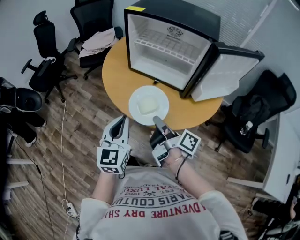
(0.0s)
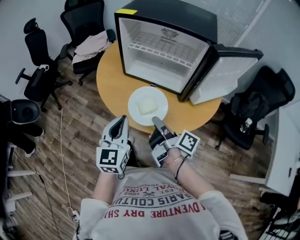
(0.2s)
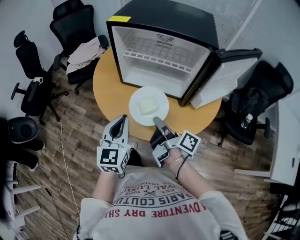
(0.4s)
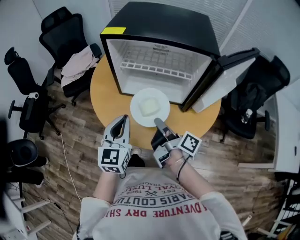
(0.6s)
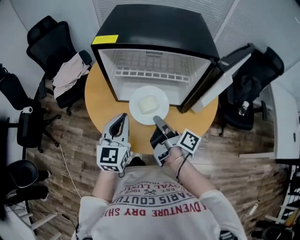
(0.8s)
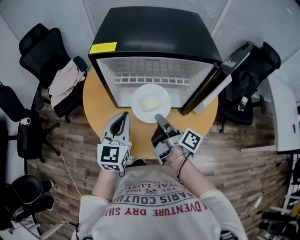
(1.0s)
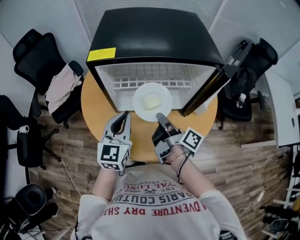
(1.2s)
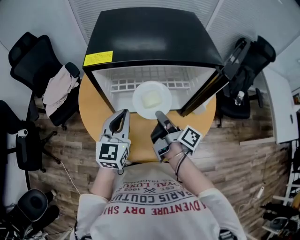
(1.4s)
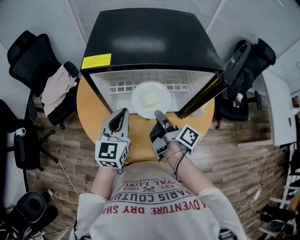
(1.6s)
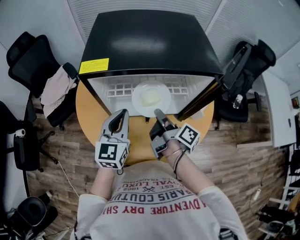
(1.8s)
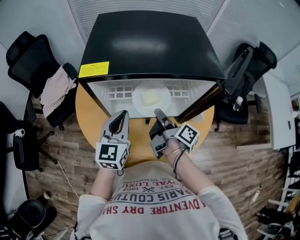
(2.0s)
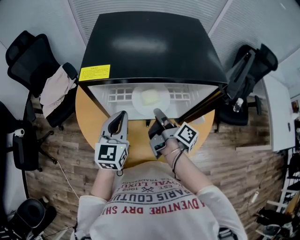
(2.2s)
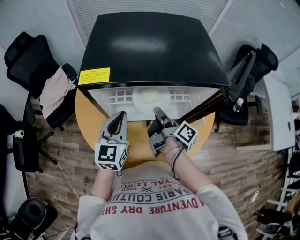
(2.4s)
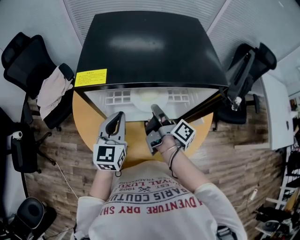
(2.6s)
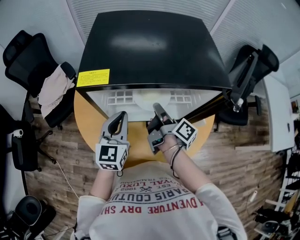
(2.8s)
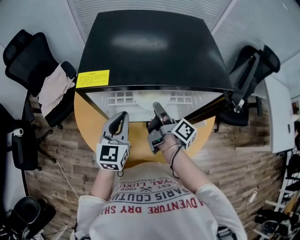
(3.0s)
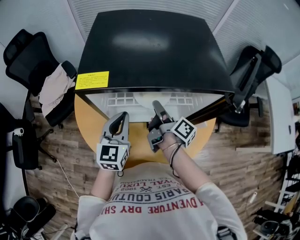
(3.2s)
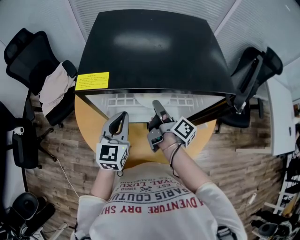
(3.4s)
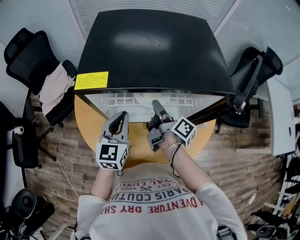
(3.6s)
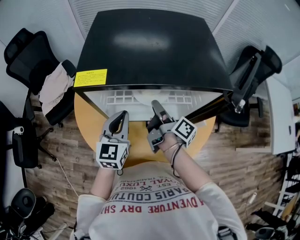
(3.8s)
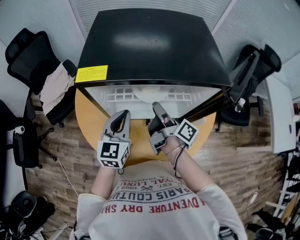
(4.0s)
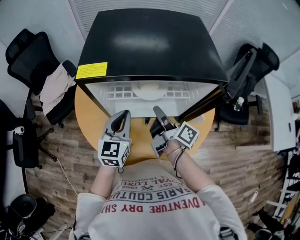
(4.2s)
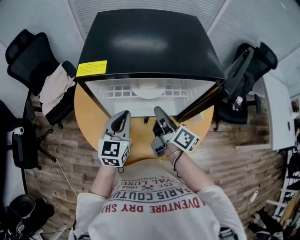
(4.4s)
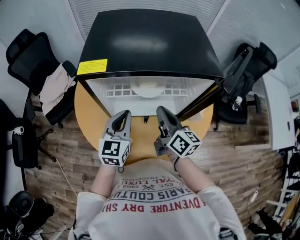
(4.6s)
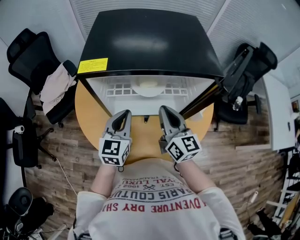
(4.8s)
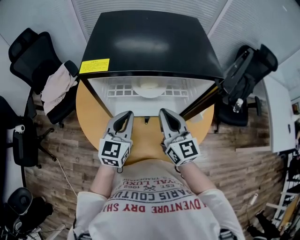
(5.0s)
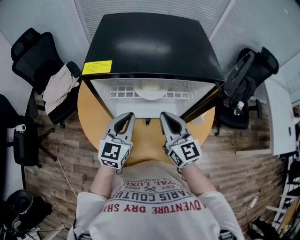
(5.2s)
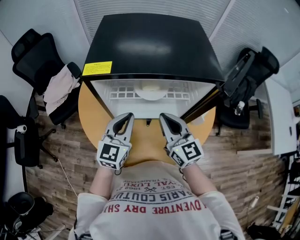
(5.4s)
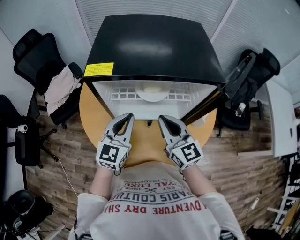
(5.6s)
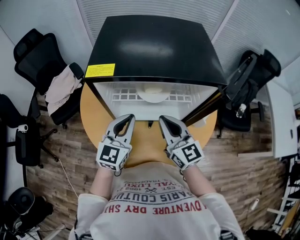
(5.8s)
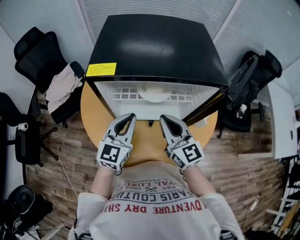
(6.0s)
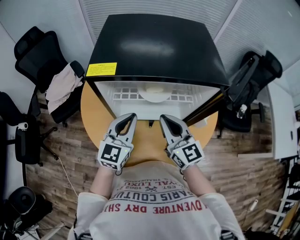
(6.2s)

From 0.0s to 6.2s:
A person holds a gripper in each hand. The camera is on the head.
From 0.0s to 1.6s: The left gripper ends up about 30 cm from where it was, and turns by some 30 degrees.
From 1.6s to 3.2s: The left gripper changes place by about 5 cm.

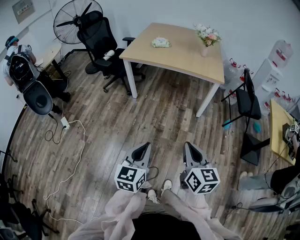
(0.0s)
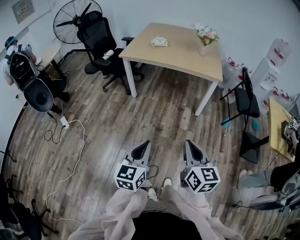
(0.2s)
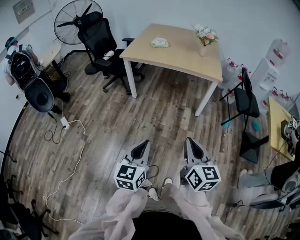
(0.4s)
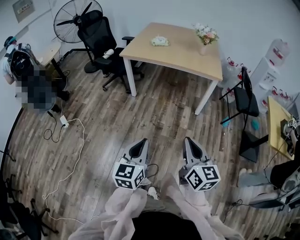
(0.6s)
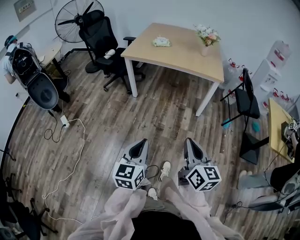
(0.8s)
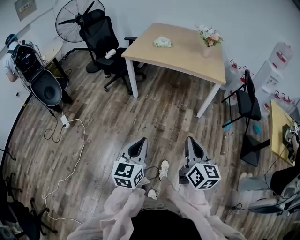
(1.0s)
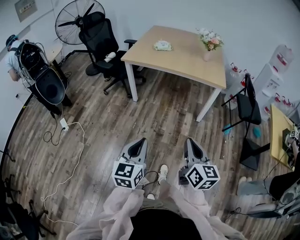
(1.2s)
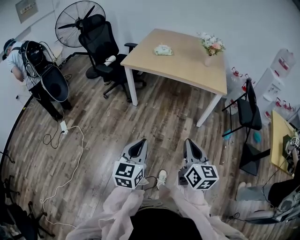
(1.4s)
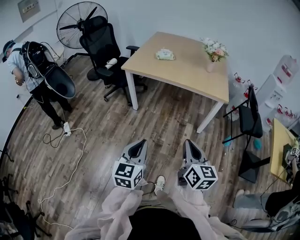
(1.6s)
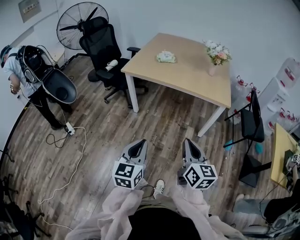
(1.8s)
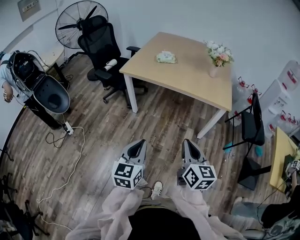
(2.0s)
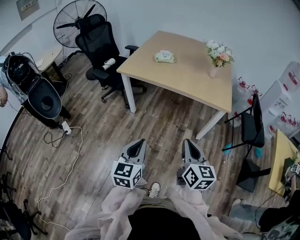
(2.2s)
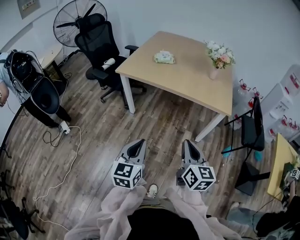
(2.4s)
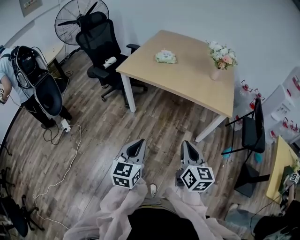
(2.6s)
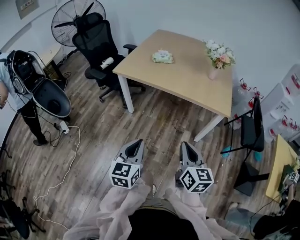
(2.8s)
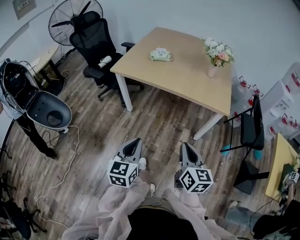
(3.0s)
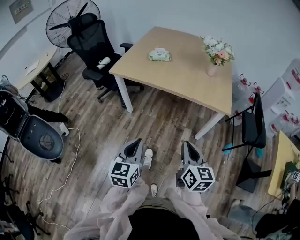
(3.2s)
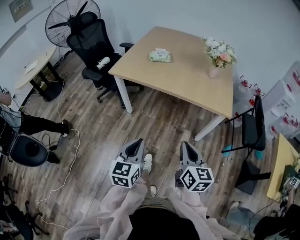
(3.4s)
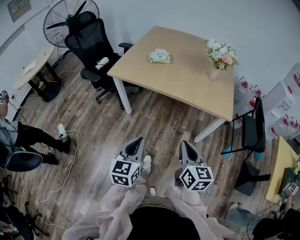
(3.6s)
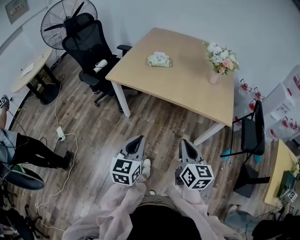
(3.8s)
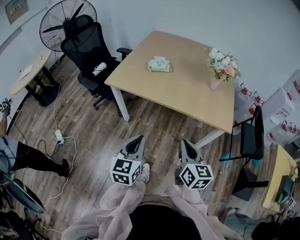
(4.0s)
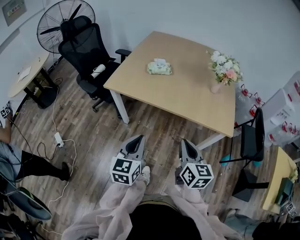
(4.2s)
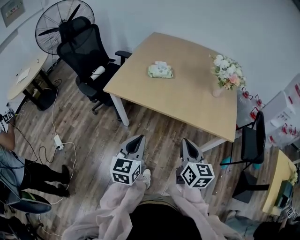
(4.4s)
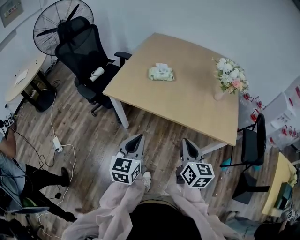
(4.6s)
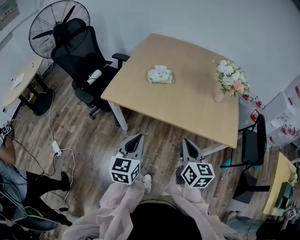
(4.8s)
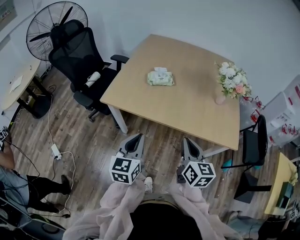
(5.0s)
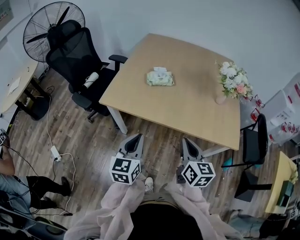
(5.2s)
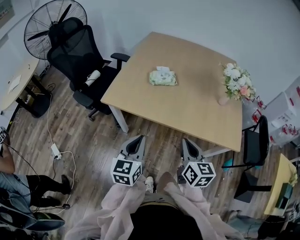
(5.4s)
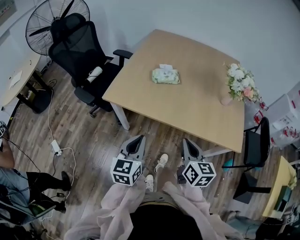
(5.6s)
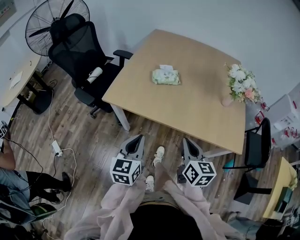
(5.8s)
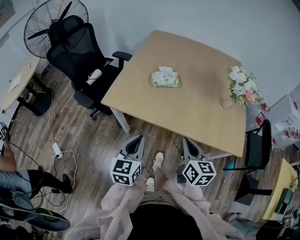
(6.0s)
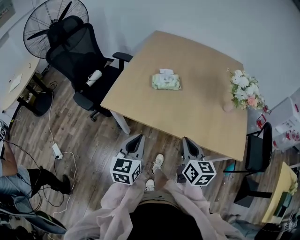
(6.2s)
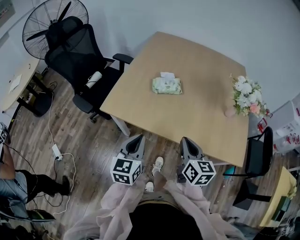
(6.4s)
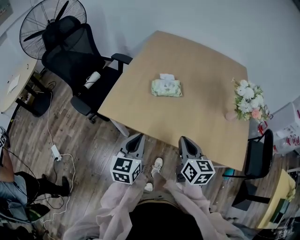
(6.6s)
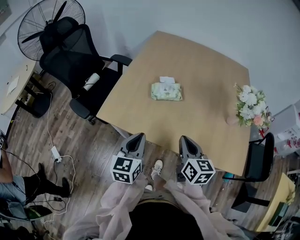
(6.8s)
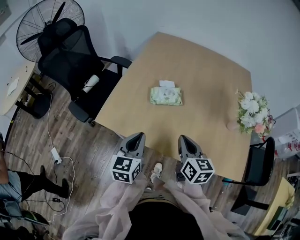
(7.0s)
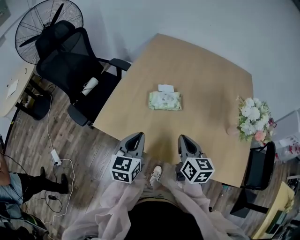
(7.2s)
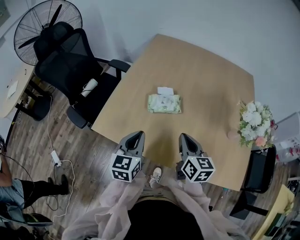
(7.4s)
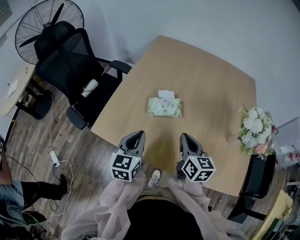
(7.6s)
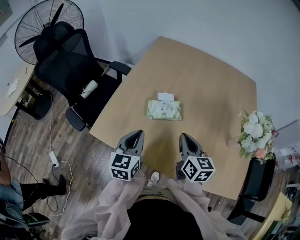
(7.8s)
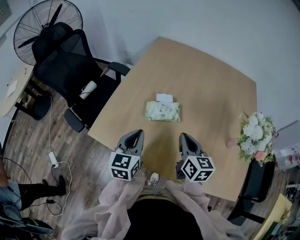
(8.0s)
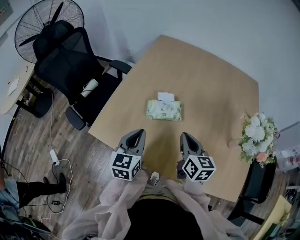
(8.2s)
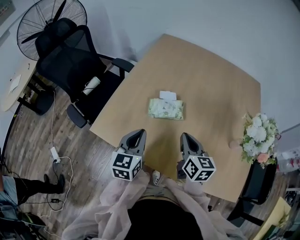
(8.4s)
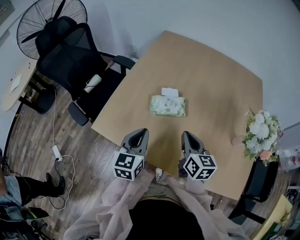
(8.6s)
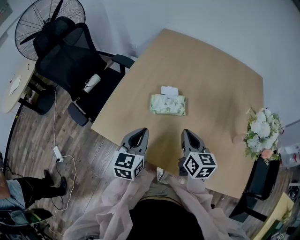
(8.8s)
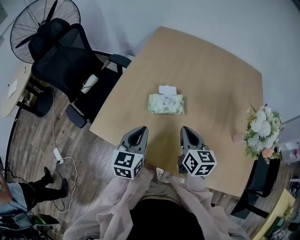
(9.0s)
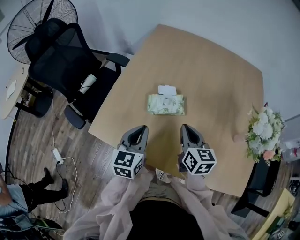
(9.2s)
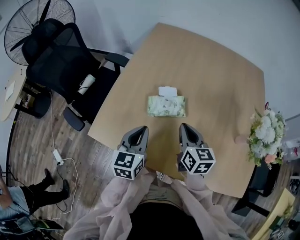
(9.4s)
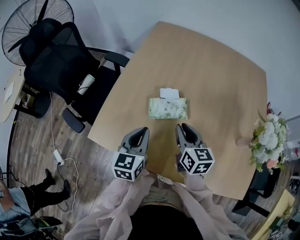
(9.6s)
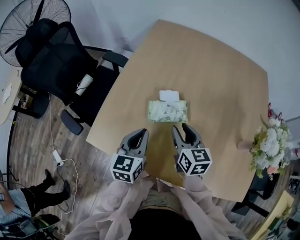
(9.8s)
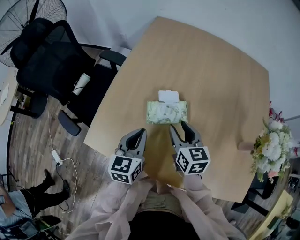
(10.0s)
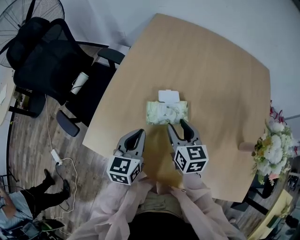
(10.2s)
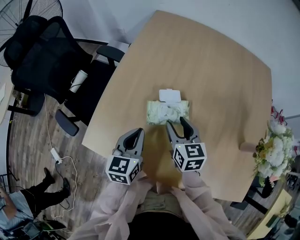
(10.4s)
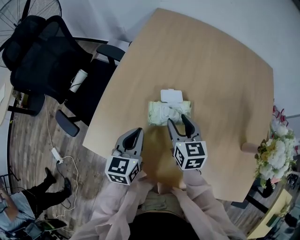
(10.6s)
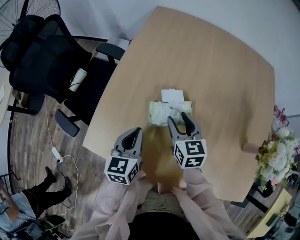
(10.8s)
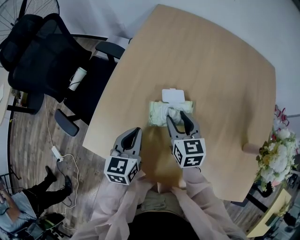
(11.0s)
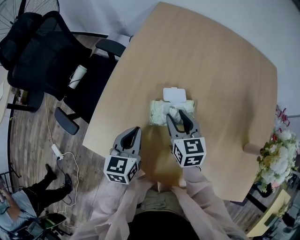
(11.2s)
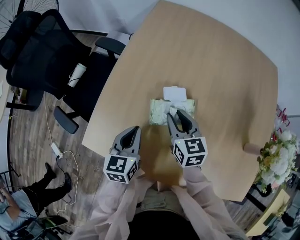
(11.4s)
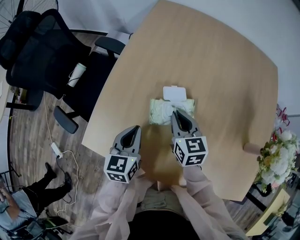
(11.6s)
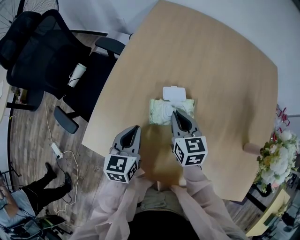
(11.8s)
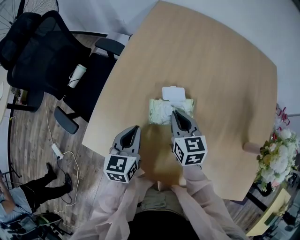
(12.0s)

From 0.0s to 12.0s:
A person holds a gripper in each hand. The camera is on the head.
From 0.0s to 1.6s: The grippers both shift forward by about 15 cm.
From 1.6s to 3.0s: The right gripper moves forward and to the right, some 15 cm. The left gripper travels forward by some 15 cm.
From 3.0s to 4.4s: Both grippers travel together forward, approximately 20 cm.
From 4.4s to 6.0s: The right gripper goes about 15 cm forward, while the left gripper goes about 15 cm forward and to the left.
From 6.0s to 7.6s: The grippers both shift forward by roughly 25 cm.
From 7.6s to 9.0s: The grippers stay close to where they were, moving slightly.
From 9.0s to 10.4s: The right gripper travels forward, downward and to the left by some 15 cm, and opens, while the left gripper shifts roughly 10 cm forward and downward.
From 10.4s to 12.0s: The right gripper closes.

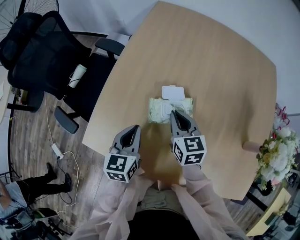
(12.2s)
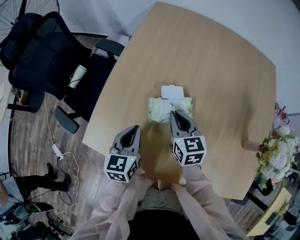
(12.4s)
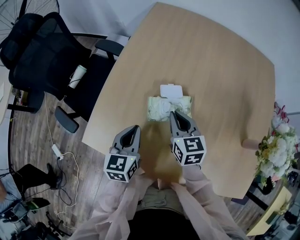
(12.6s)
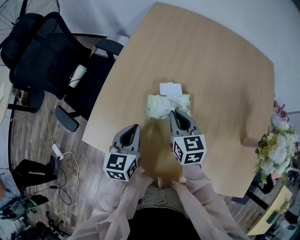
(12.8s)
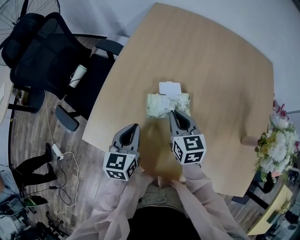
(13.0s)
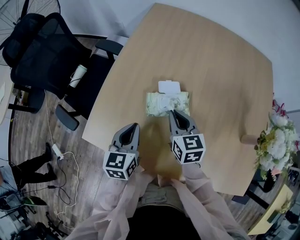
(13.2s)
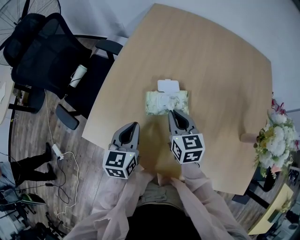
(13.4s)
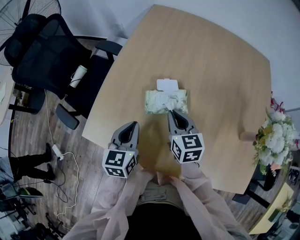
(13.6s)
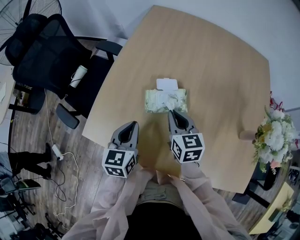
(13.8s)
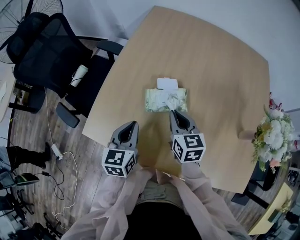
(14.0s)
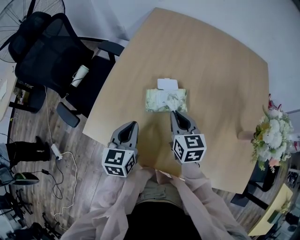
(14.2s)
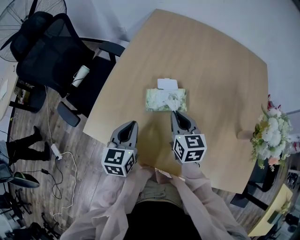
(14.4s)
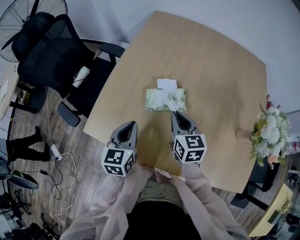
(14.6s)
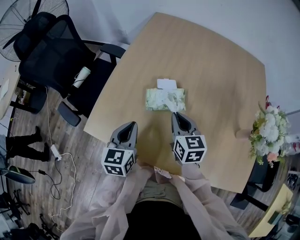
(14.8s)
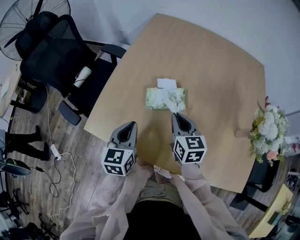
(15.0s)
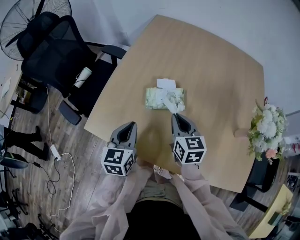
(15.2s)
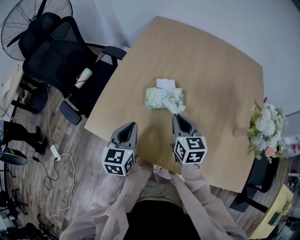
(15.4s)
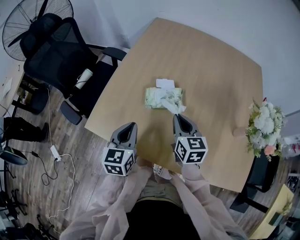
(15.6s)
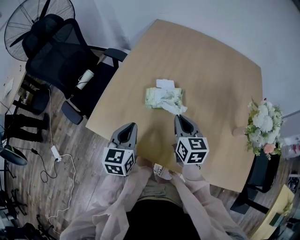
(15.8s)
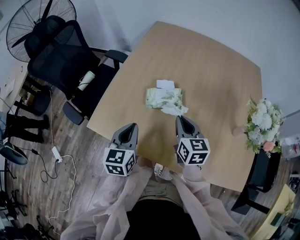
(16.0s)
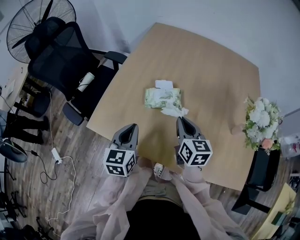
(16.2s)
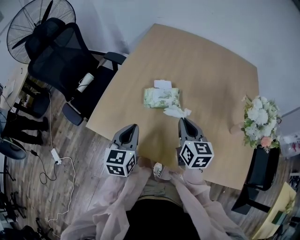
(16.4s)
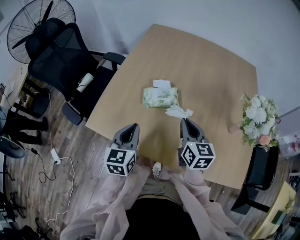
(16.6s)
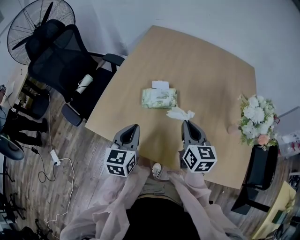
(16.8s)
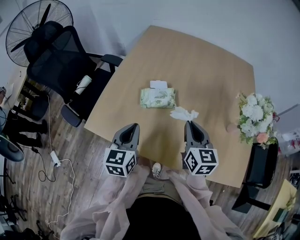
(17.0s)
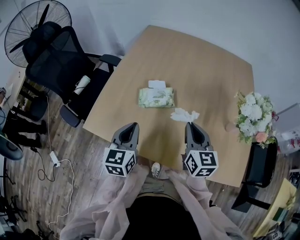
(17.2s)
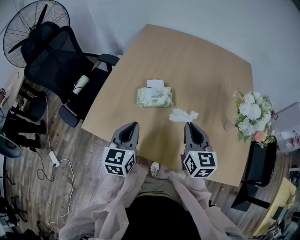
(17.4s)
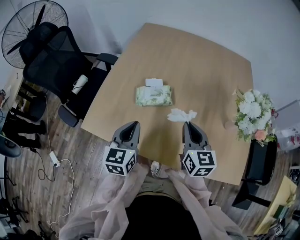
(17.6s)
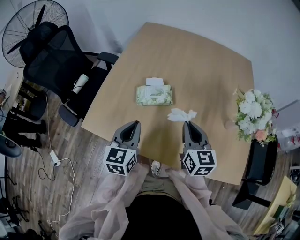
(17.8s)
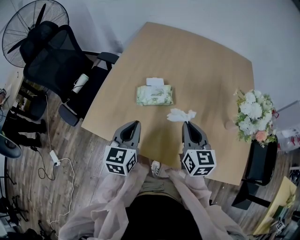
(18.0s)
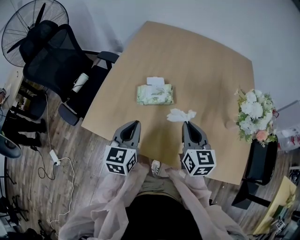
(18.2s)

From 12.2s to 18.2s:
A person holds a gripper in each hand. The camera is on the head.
From 12.2s to 13.8s: The right gripper ends up about 5 cm from where it was.
From 13.8s to 15.2s: The right gripper moves approximately 5 cm.
From 15.2s to 16.6s: The left gripper changes place by about 5 cm. Meanwhile the right gripper heads to the right and backward, covering some 10 cm.
From 16.6s to 18.2s: There are only small adjustments of the grippers.
